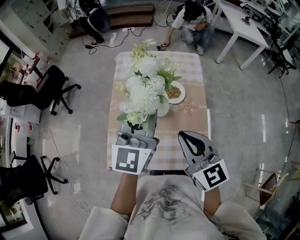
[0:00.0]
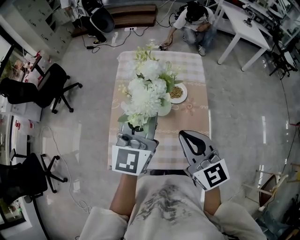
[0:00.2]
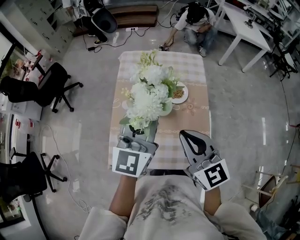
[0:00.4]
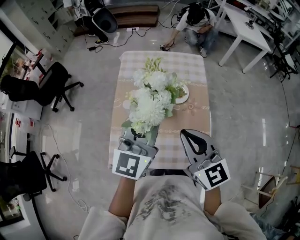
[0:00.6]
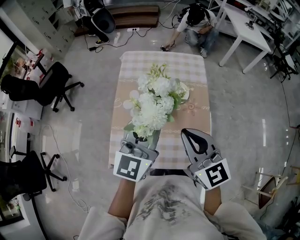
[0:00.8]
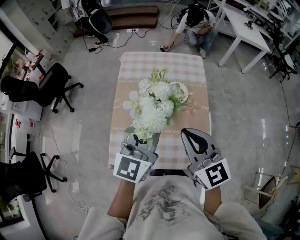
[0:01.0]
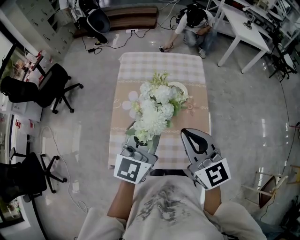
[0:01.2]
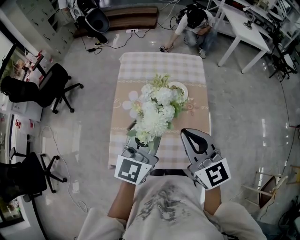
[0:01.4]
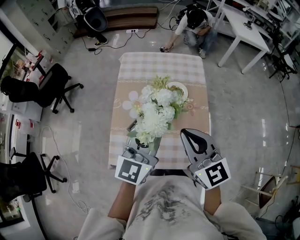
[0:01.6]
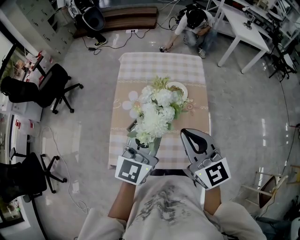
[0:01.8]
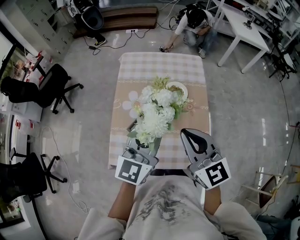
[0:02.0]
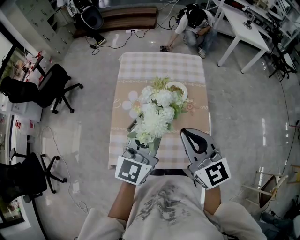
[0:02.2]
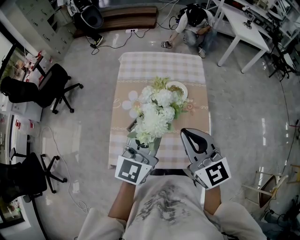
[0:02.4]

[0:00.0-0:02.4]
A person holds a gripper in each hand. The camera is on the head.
0:00.0 to 0:01.2: The left gripper goes roughly 10 cm backward and downward.
0:01.2 to 0:02.4: Both grippers stay about where they are.

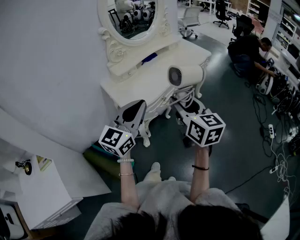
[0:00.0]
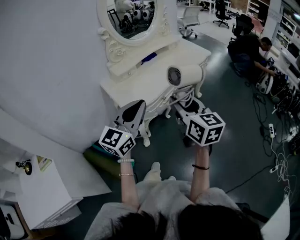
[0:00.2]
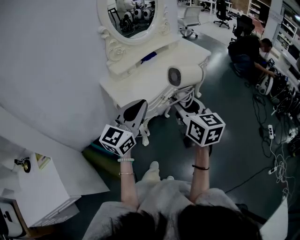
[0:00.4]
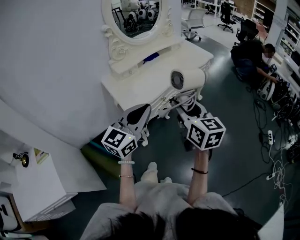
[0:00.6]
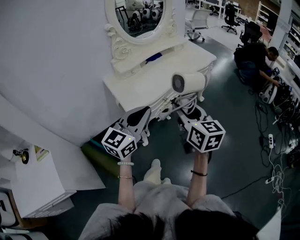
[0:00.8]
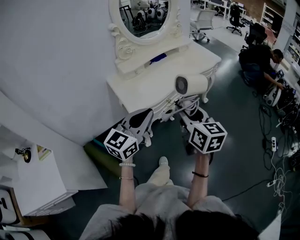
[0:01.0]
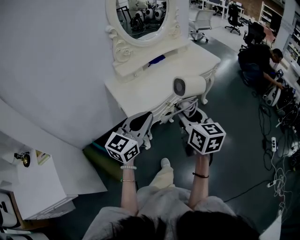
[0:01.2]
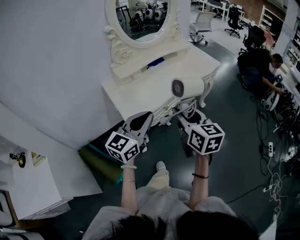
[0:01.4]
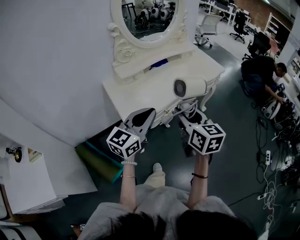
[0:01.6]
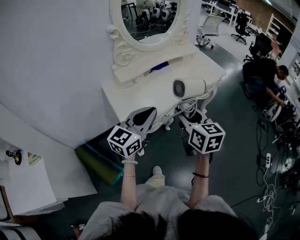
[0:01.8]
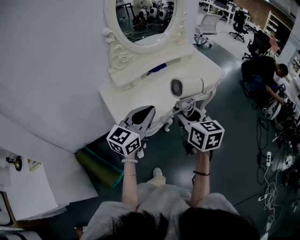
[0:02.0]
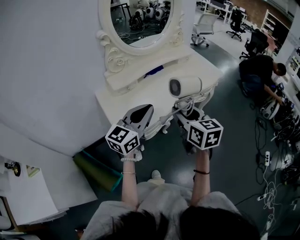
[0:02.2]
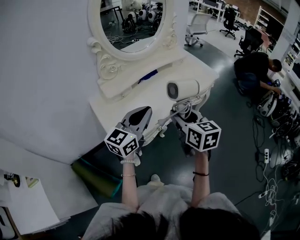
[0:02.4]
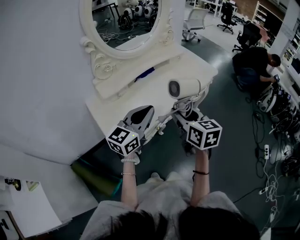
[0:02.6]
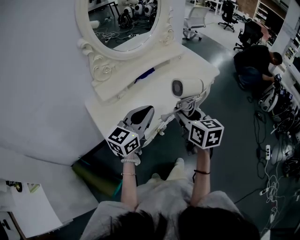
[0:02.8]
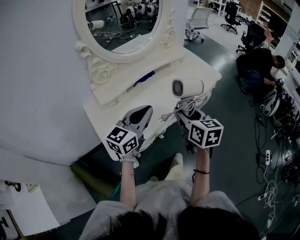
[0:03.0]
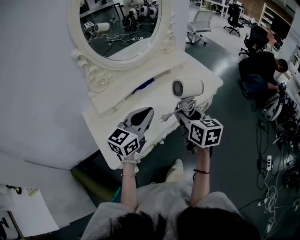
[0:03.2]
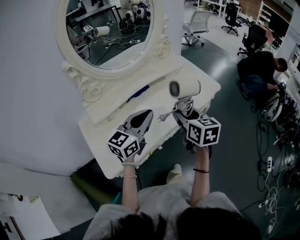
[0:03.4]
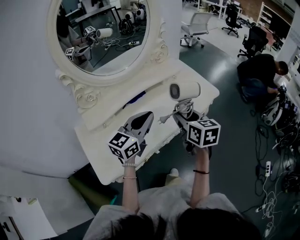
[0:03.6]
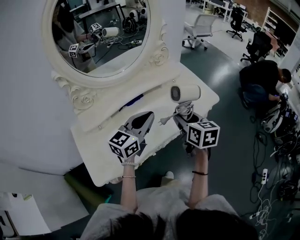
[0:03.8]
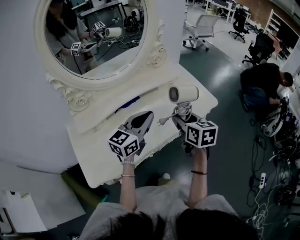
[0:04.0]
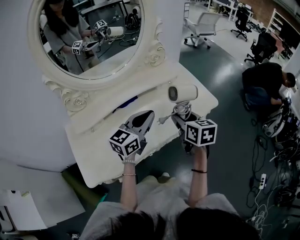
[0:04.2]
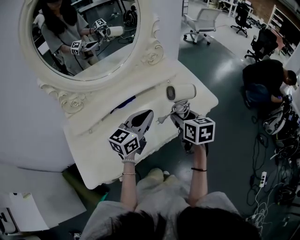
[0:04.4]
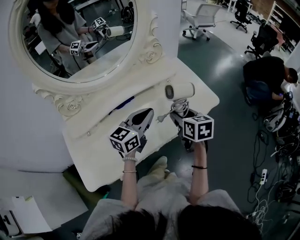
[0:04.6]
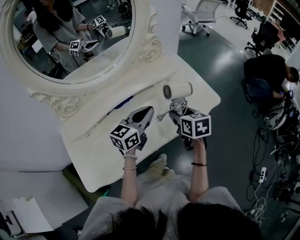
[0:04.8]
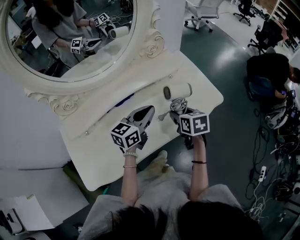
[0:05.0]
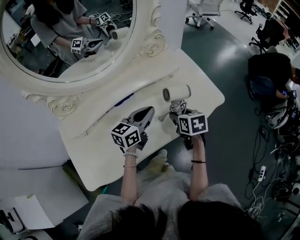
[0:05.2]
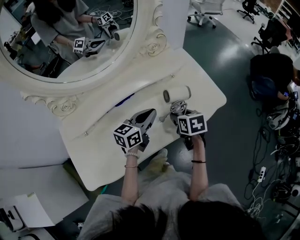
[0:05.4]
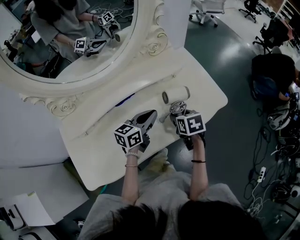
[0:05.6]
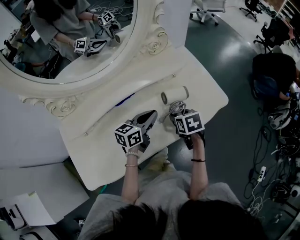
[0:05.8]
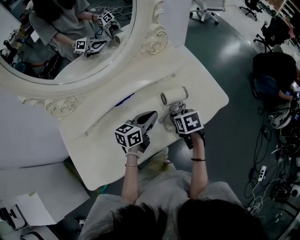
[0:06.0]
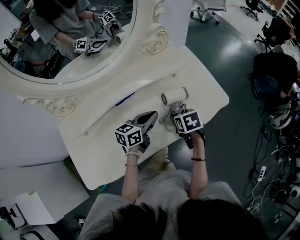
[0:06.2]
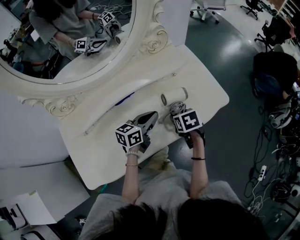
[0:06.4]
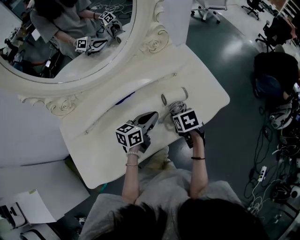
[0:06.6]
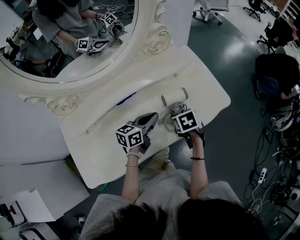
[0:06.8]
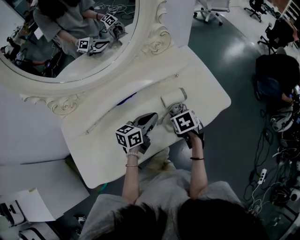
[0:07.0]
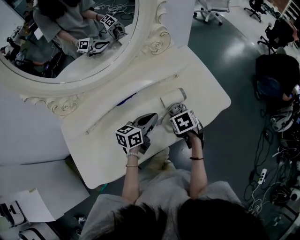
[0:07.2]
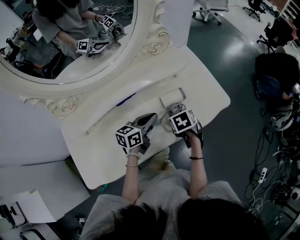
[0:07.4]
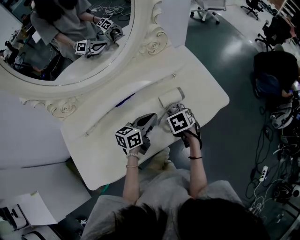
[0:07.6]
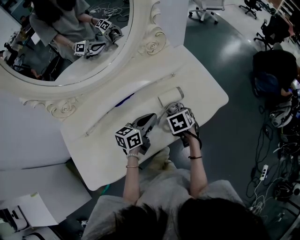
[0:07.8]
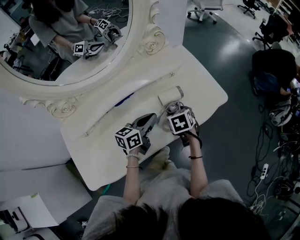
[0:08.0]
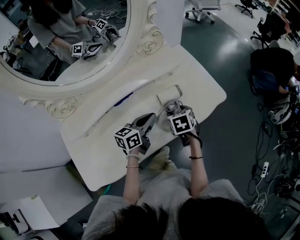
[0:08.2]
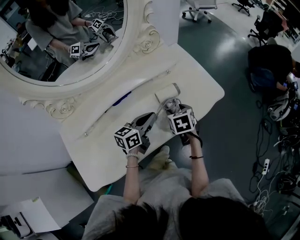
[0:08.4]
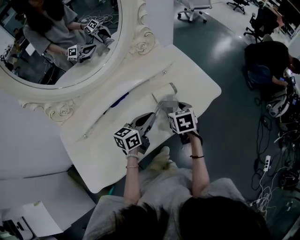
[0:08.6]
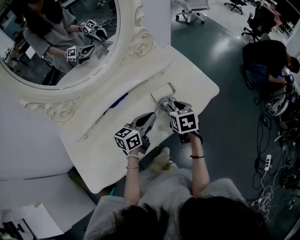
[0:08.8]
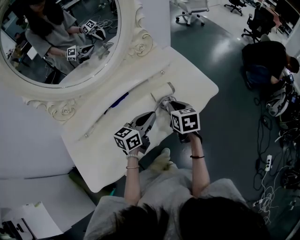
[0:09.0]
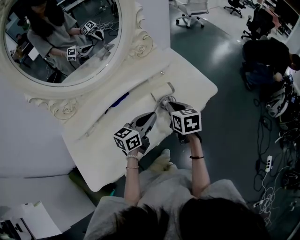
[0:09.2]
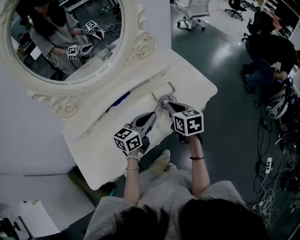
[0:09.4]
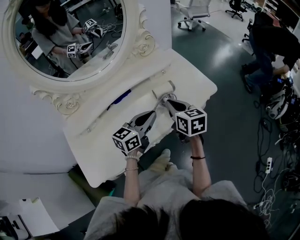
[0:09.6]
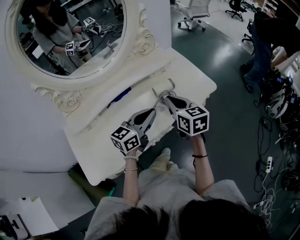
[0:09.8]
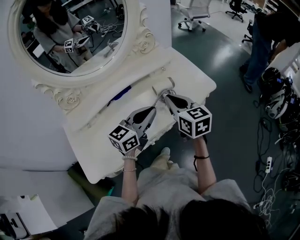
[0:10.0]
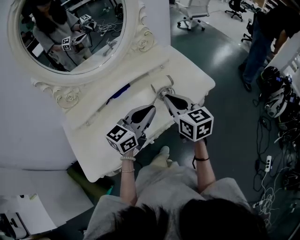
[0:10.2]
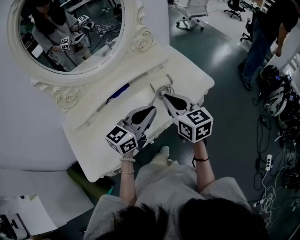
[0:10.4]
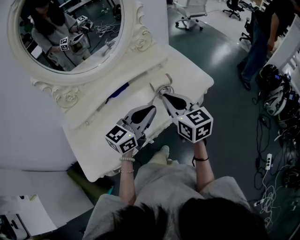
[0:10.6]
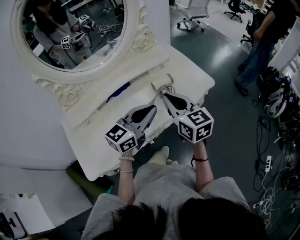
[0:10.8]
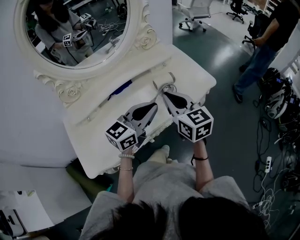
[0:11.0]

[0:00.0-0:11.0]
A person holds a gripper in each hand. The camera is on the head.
0:00.0 to 0:01.6: The left gripper heads forward and downward, covering about 10 cm. Meanwhile the right gripper goes some 10 cm forward.
0:01.6 to 0:03.2: The grippers both shift forward by about 25 cm.
0:03.2 to 0:04.8: The right gripper travels forward, downward and to the right by approximately 30 cm. Meanwhile the left gripper goes about 25 cm forward and to the right.
0:04.8 to 0:06.2: The grippers both shift downward by roughly 10 cm. The right gripper changes its angle by approximately 20 degrees.
0:06.2 to 0:07.8: The grippers move only a little.
0:07.8 to 0:09.4: The right gripper moves upward, roughly 10 cm, tilts its fingers some 30 degrees upward, and closes up. Meanwhile the left gripper travels upward and backward by approximately 10 cm.
0:09.4 to 0:11.0: Both grippers travel together upward and backward, approximately 15 cm. The right gripper rotates roughly 20 degrees.

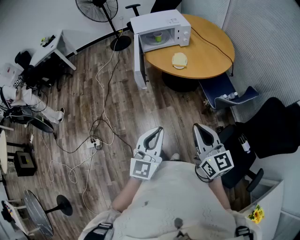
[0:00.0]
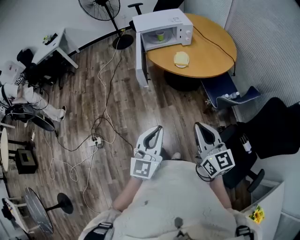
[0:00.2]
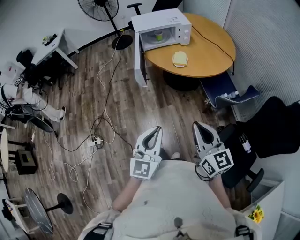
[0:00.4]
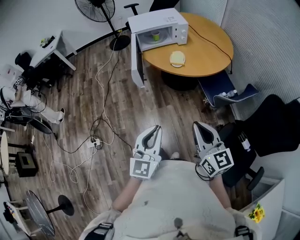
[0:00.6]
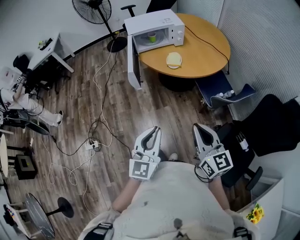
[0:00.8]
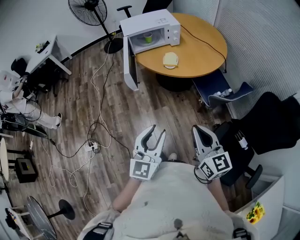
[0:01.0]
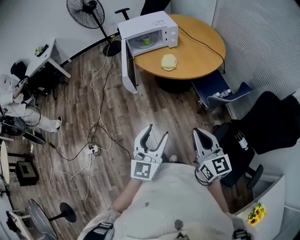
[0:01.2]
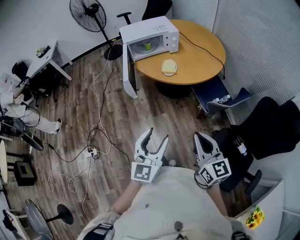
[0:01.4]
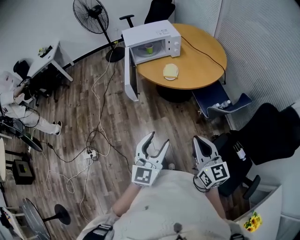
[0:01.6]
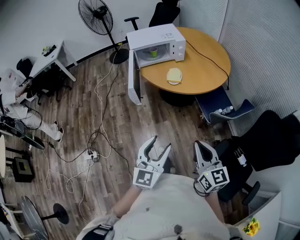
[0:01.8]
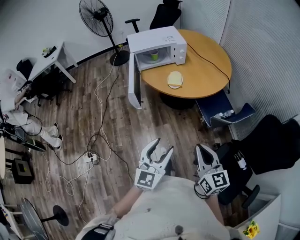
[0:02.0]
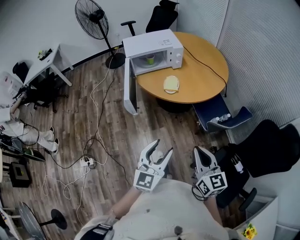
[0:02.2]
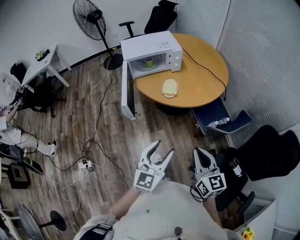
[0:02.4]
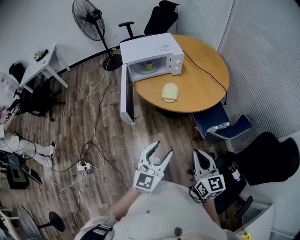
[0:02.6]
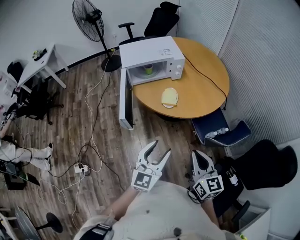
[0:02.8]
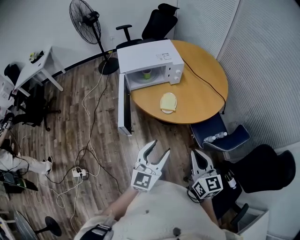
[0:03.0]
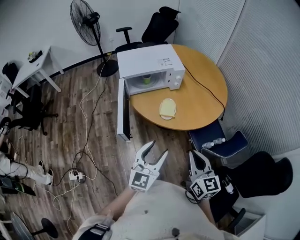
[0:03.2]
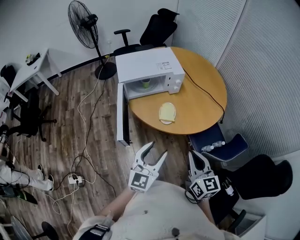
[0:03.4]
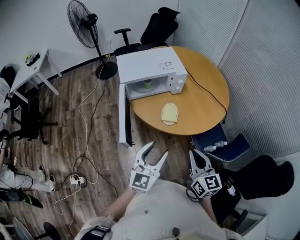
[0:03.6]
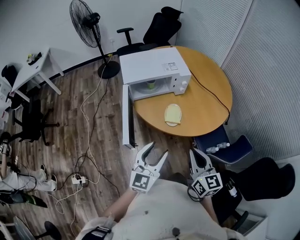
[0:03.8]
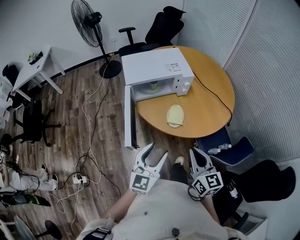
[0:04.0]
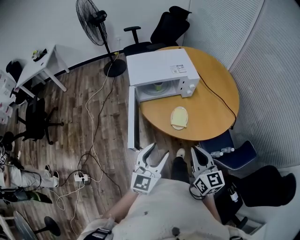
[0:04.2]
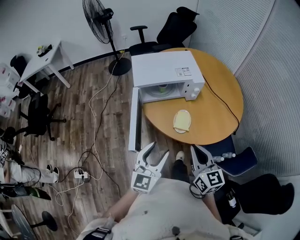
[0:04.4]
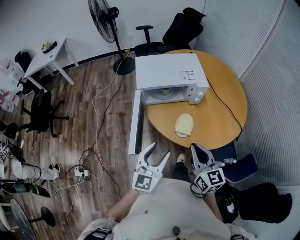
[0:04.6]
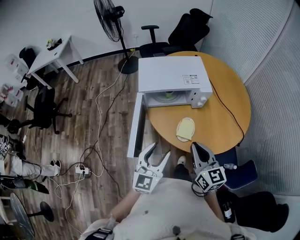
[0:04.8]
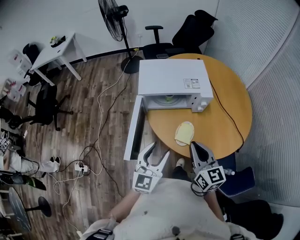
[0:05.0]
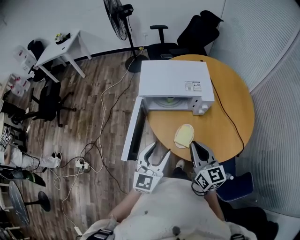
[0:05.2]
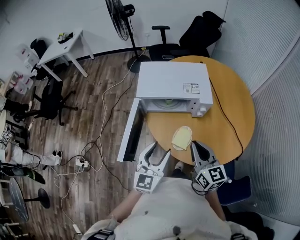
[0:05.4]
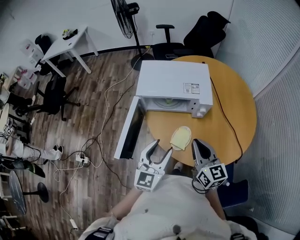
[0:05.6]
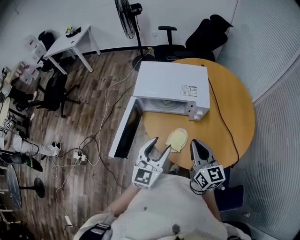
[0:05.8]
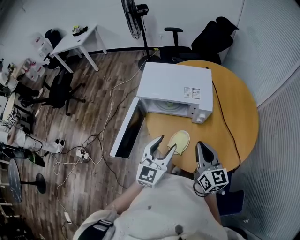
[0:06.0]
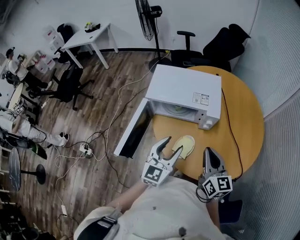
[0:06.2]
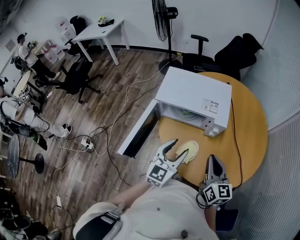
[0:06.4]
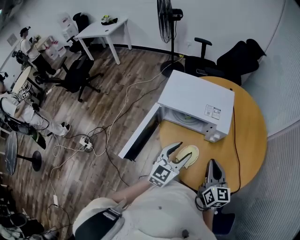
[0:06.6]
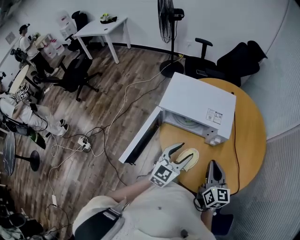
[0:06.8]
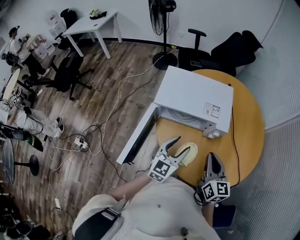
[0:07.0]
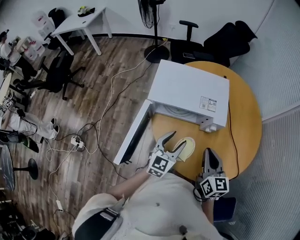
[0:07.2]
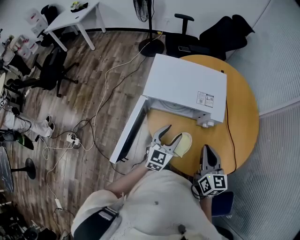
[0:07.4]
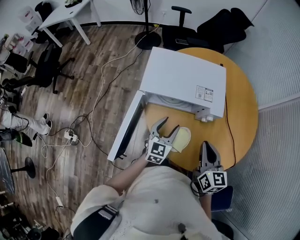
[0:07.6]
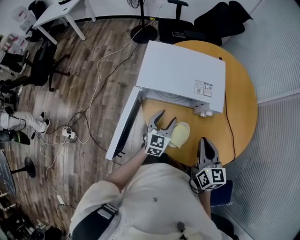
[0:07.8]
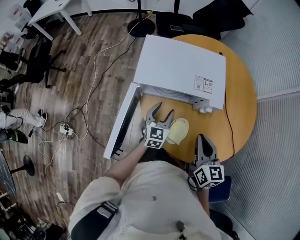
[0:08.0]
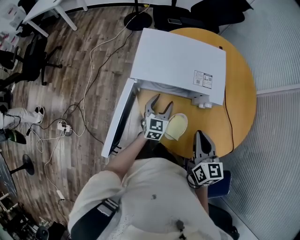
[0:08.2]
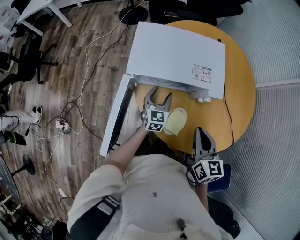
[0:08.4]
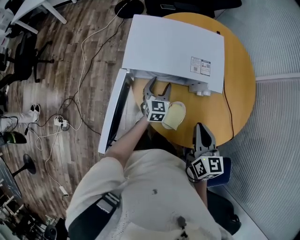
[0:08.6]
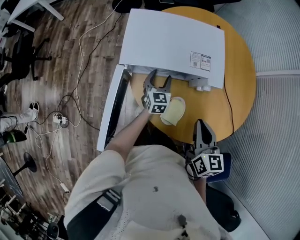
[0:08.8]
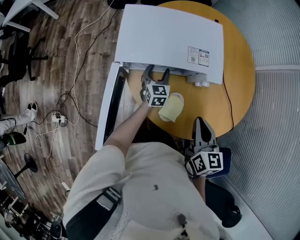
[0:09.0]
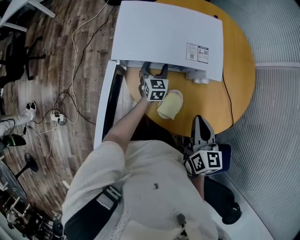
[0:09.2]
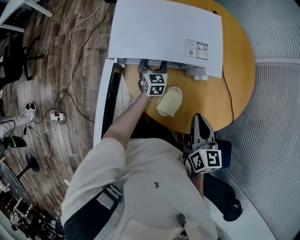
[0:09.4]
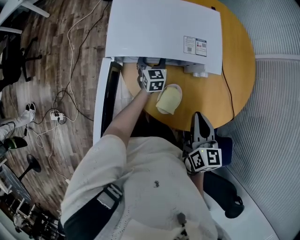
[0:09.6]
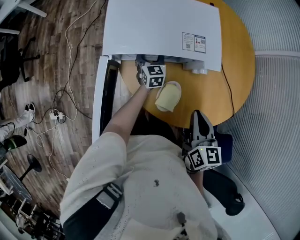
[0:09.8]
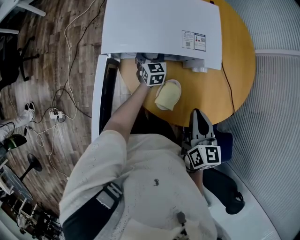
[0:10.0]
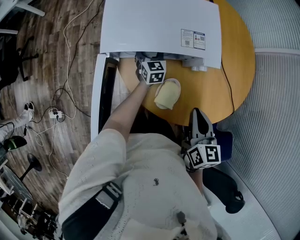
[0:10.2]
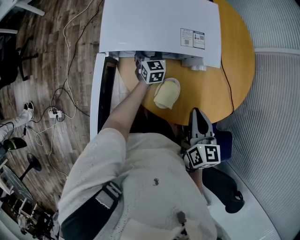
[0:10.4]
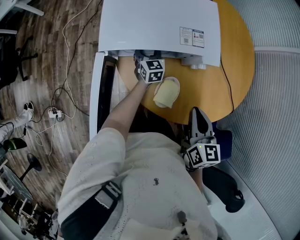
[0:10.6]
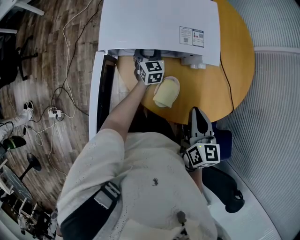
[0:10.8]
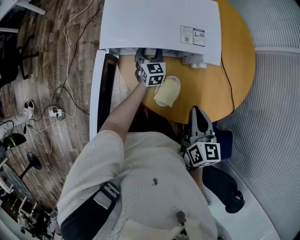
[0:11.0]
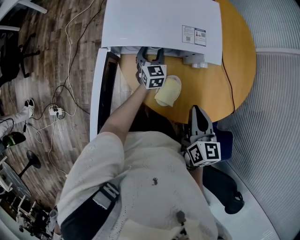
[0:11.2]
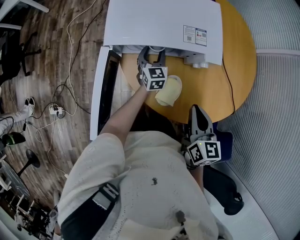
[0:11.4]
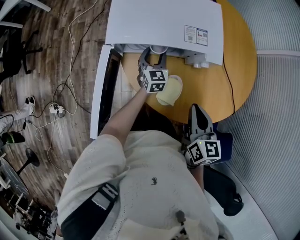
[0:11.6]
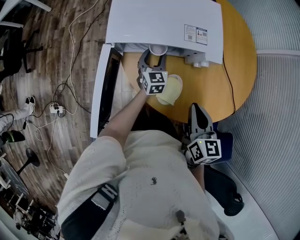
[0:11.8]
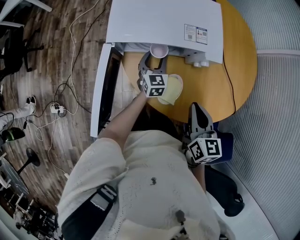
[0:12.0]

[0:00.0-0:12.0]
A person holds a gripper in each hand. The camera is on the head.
0:00.0 to 0:01.6: The grippers both shift to the right by some 5 cm. The left gripper opens up.
0:01.6 to 0:03.0: Both grippers move forward, about 25 cm.
0:03.0 to 0:04.4: Both grippers move forward and to the left, approximately 20 cm.
0:04.4 to 0:06.0: The right gripper heads forward and to the right, covering roughly 25 cm, while the left gripper travels to the right and forward by roughly 25 cm.
0:06.0 to 0:07.6: The right gripper is displaced forward and downward by roughly 10 cm. Meanwhile the left gripper shifts about 20 cm forward and downward.
0:07.6 to 0:09.0: The right gripper goes approximately 5 cm downward. The left gripper travels downward and forward by about 20 cm.
0:09.0 to 0:10.4: The left gripper shifts by about 5 cm.
0:10.4 to 0:12.0: The left gripper goes roughly 10 cm backward.
